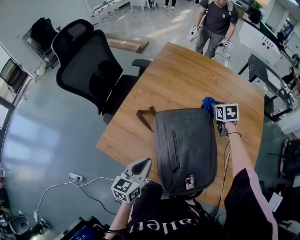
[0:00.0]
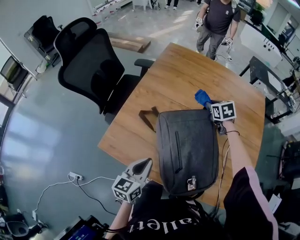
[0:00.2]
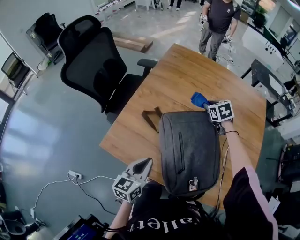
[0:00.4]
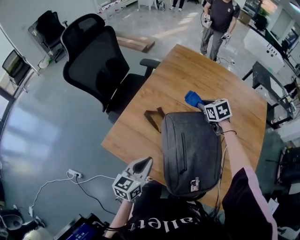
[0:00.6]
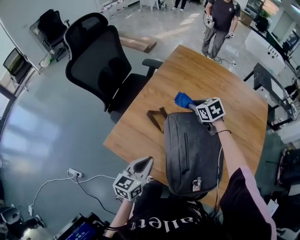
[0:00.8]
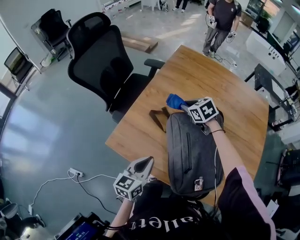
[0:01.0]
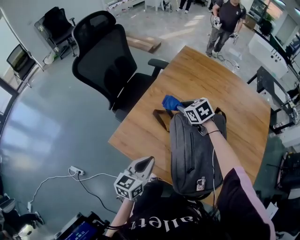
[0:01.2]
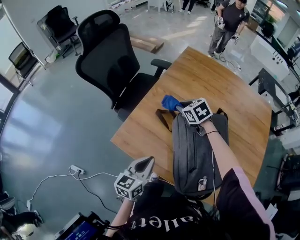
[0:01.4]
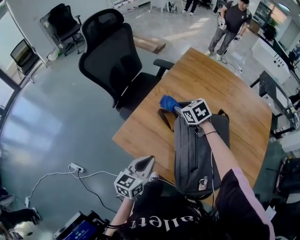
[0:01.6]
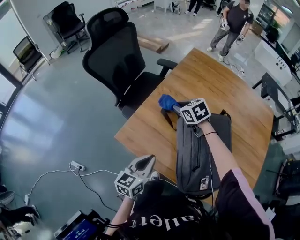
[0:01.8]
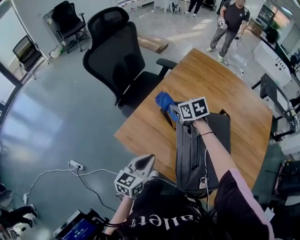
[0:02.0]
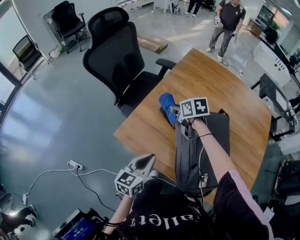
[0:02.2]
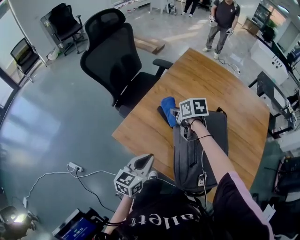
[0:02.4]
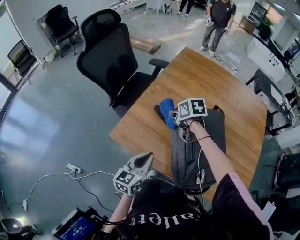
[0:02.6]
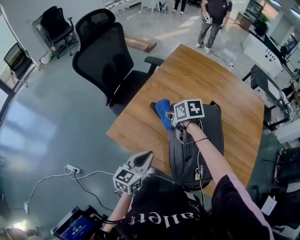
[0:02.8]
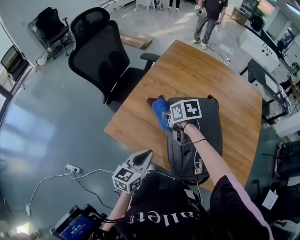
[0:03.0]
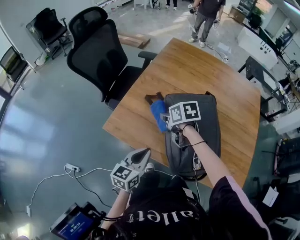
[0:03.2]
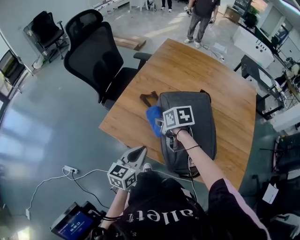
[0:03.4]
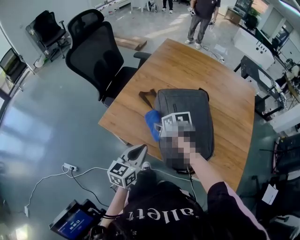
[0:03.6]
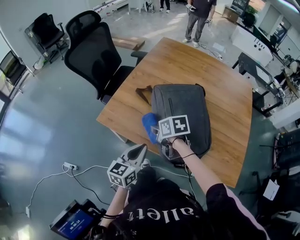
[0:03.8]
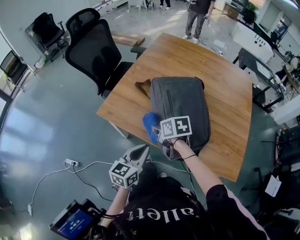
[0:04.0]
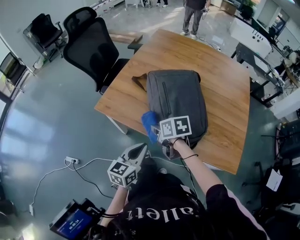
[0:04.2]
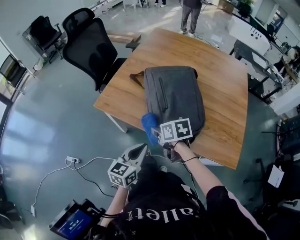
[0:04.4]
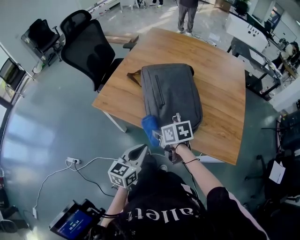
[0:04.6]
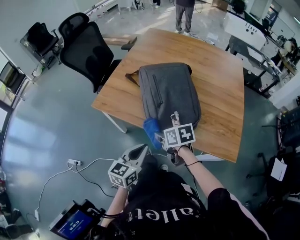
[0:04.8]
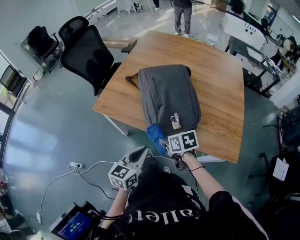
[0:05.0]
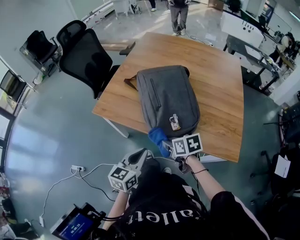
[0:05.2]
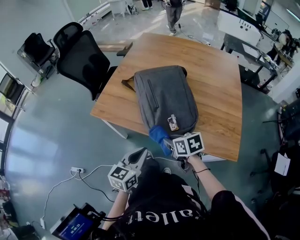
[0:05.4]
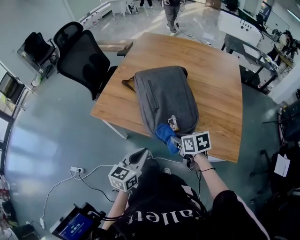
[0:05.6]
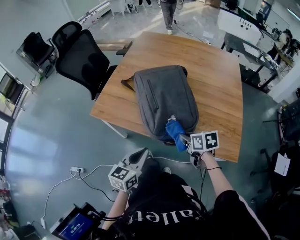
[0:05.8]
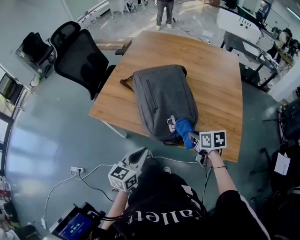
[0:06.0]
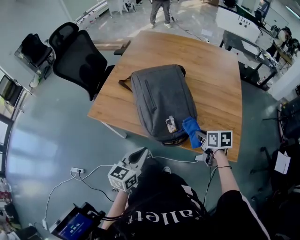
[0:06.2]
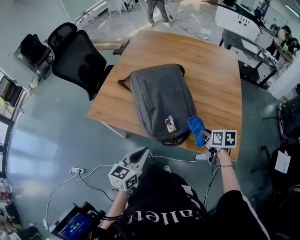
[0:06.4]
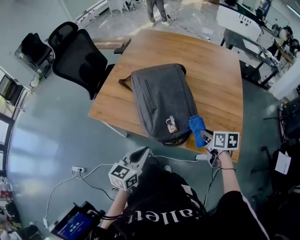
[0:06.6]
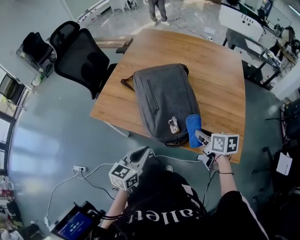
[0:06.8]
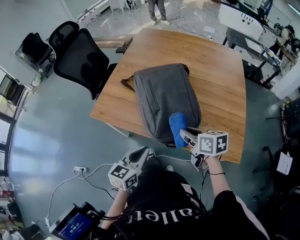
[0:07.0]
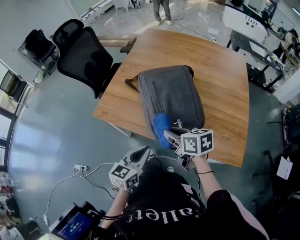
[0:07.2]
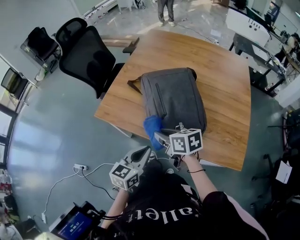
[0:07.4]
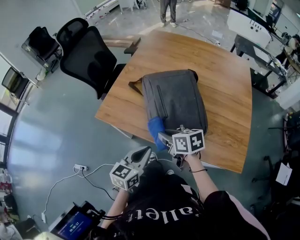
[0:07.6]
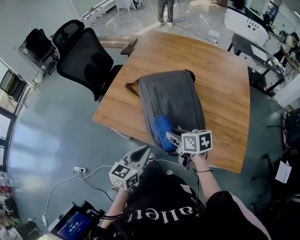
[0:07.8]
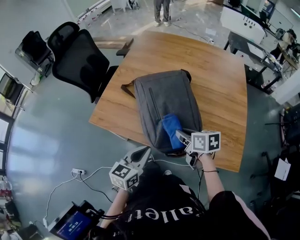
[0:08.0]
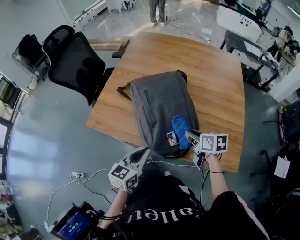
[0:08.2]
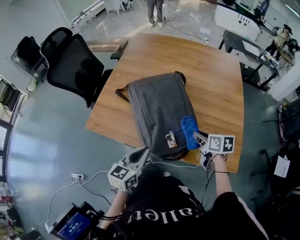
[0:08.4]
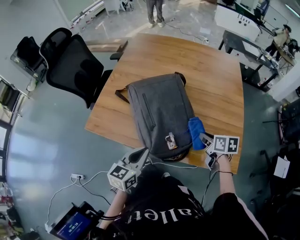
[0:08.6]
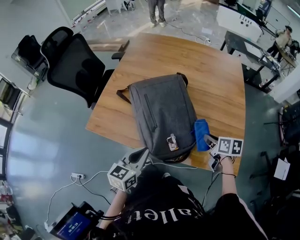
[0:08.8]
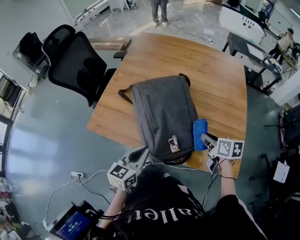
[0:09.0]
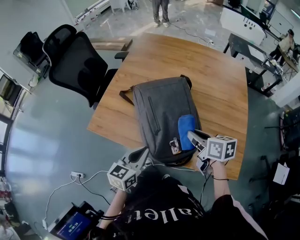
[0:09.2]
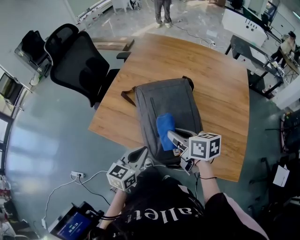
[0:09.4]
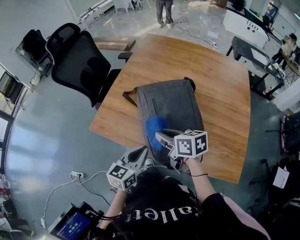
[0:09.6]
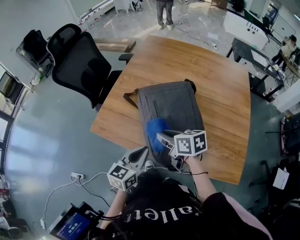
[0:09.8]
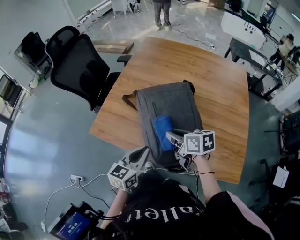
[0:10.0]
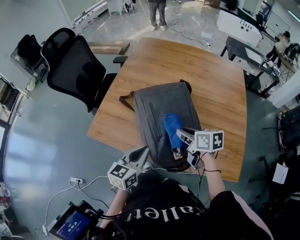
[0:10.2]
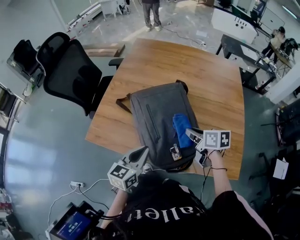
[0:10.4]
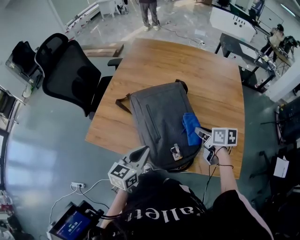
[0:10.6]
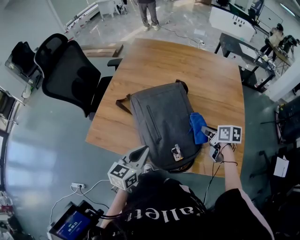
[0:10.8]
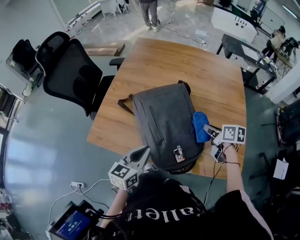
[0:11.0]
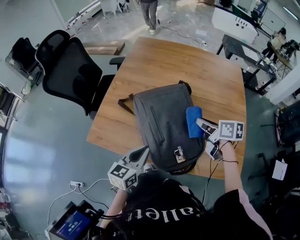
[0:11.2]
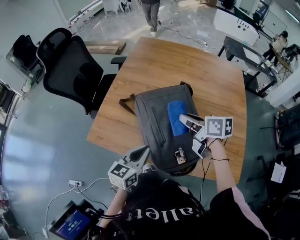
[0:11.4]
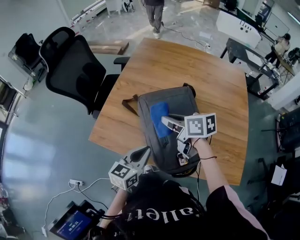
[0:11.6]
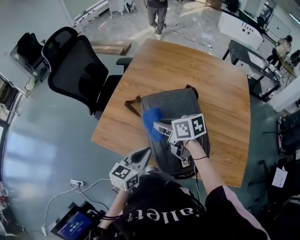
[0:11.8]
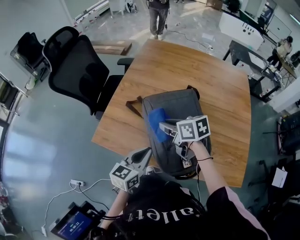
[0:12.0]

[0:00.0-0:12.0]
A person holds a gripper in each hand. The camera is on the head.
0:00.0 to 0:01.6: The right gripper shifts approximately 35 cm to the left, and turns by about 40 degrees. The left gripper heads to the left, covering about 10 cm.
0:01.6 to 0:03.0: The right gripper moves backward, some 10 cm, and swivels roughly 30 degrees; the left gripper ends up roughly 5 cm from where it was.
0:03.0 to 0:04.4: The left gripper heads backward, covering some 20 cm; the right gripper shifts about 30 cm backward.
0:04.4 to 0:06.0: The right gripper is displaced to the right by roughly 20 cm.
0:06.0 to 0:07.6: The left gripper ends up about 5 cm from where it was; the right gripper goes approximately 20 cm to the left, and turns by about 20 degrees.
0:07.6 to 0:09.0: The right gripper heads to the right, covering some 25 cm, and changes its angle by about 20 degrees. The left gripper is displaced forward by about 5 cm.
0:09.0 to 0:10.4: The right gripper moves forward, roughly 5 cm, and travels to the left and back again, roughly 25 cm each way.
0:10.4 to 0:12.0: The right gripper travels to the left by roughly 20 cm. The left gripper changes place by roughly 5 cm.

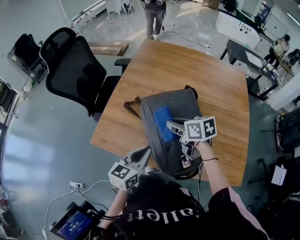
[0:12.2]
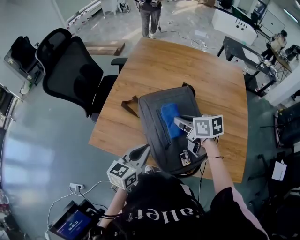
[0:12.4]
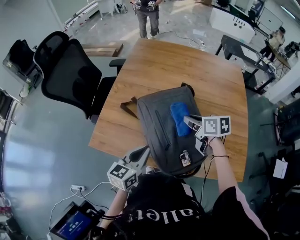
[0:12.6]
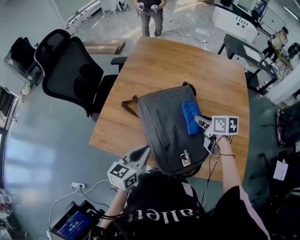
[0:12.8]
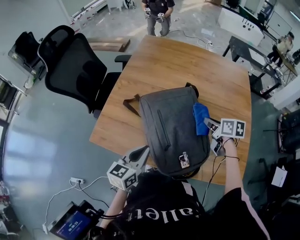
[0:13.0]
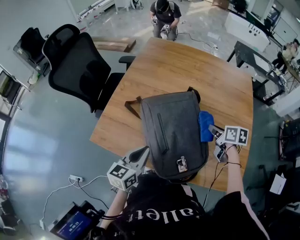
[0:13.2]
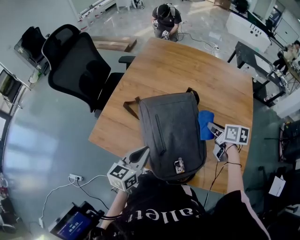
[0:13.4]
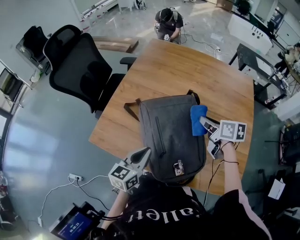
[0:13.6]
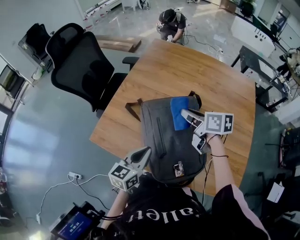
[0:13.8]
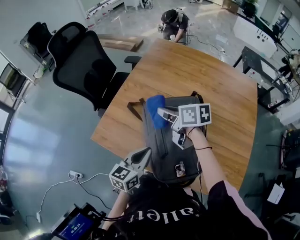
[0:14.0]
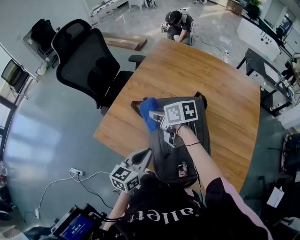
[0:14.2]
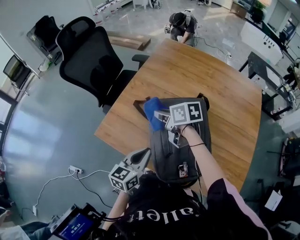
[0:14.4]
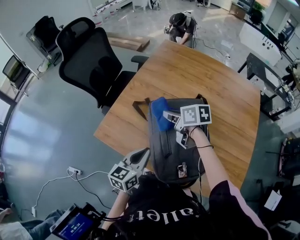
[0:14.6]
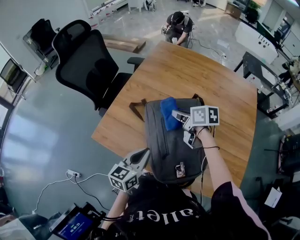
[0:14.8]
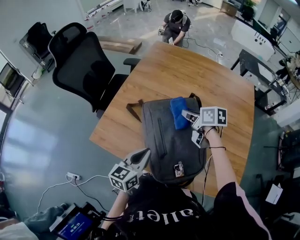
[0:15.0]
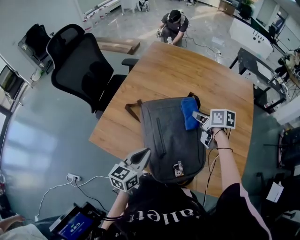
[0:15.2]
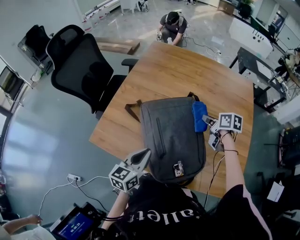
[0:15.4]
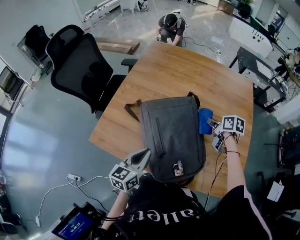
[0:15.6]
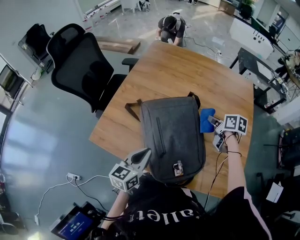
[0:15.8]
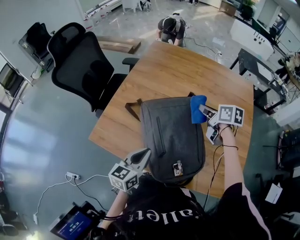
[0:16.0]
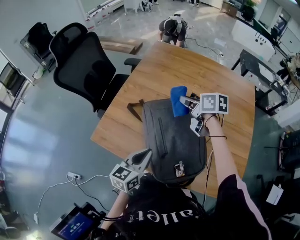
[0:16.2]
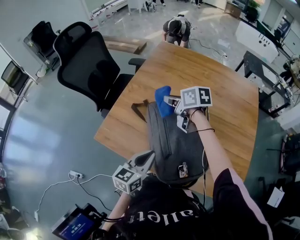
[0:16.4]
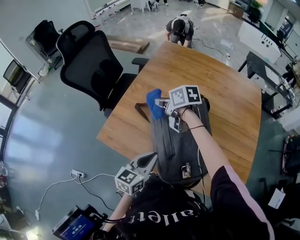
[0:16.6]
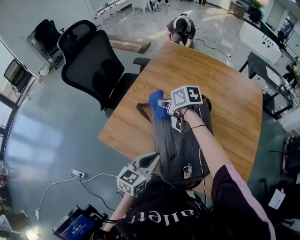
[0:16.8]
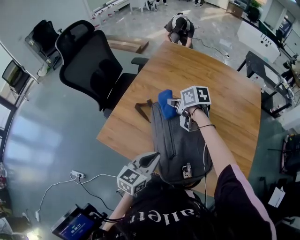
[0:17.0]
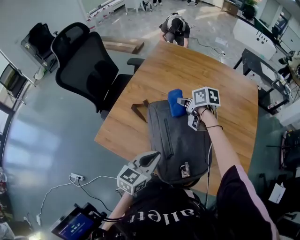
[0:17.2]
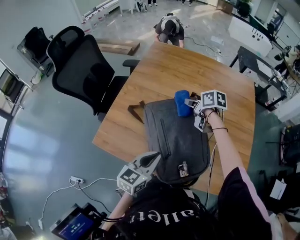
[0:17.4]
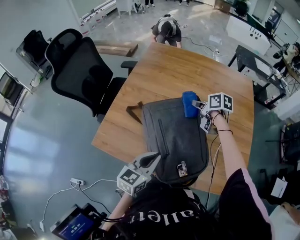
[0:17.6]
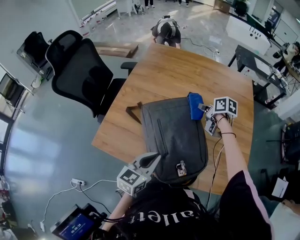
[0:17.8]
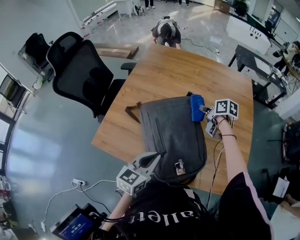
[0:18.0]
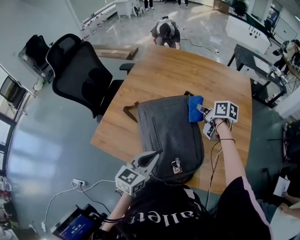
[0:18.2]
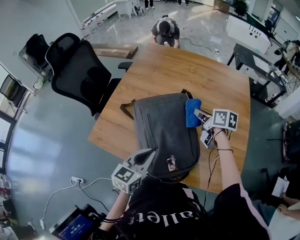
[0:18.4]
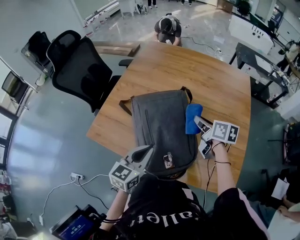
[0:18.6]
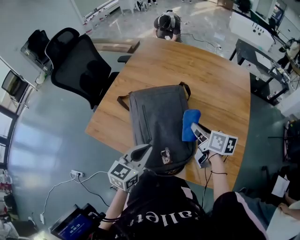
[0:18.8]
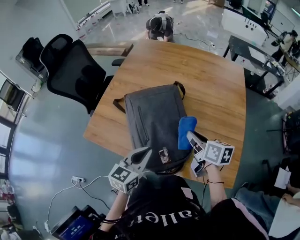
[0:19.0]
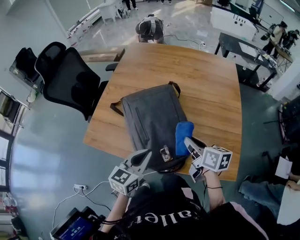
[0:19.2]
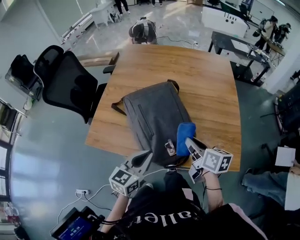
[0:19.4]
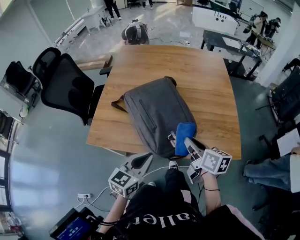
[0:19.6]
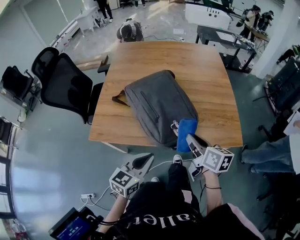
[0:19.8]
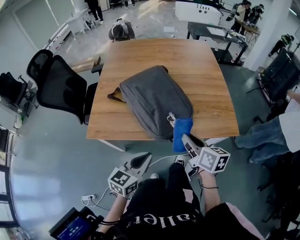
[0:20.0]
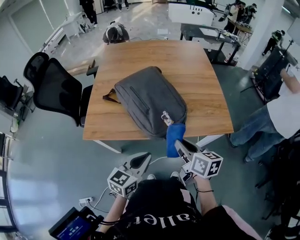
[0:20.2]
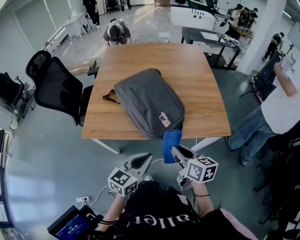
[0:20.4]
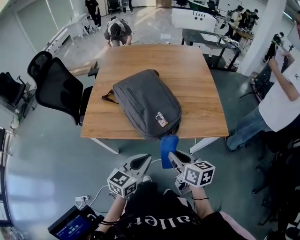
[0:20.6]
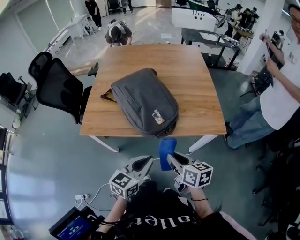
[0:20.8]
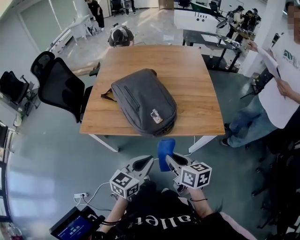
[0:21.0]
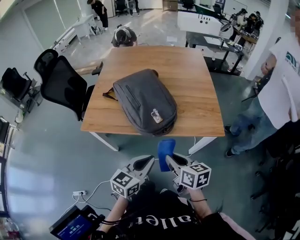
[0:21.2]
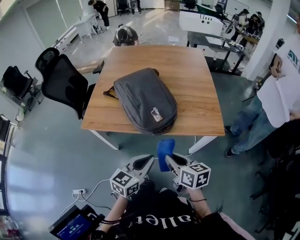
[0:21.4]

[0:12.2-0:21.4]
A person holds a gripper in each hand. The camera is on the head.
0:12.2 to 0:13.8: The right gripper is displaced forward and upward by approximately 10 cm, and travels to the right and back again, about 25 cm each way.
0:13.8 to 0:15.2: The right gripper heads downward, covering approximately 5 cm, and goes to the left and returns, approximately 15 cm each way.
0:15.2 to 0:16.8: The right gripper moves to the left, roughly 20 cm, and turns by about 20 degrees.
0:16.8 to 0:18.4: The left gripper is displaced to the right by approximately 10 cm. The right gripper is displaced to the right by some 30 cm, and changes its angle by about 30 degrees.
0:18.4 to 0:19.8: The left gripper goes approximately 20 cm backward and to the left; the right gripper heads backward, covering some 30 cm, and swivels some 20 degrees.
0:19.8 to 0:21.4: The left gripper travels backward and to the right by approximately 15 cm; the right gripper moves backward, some 15 cm.

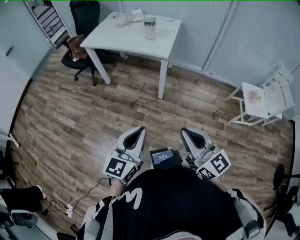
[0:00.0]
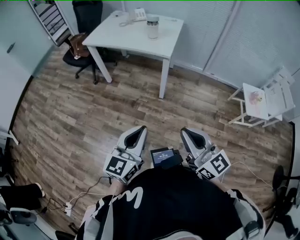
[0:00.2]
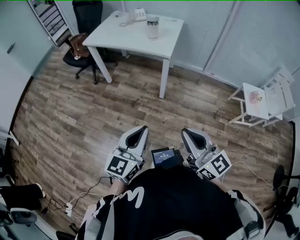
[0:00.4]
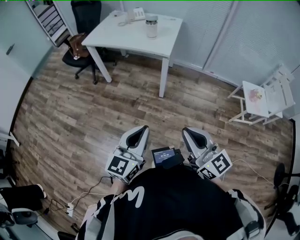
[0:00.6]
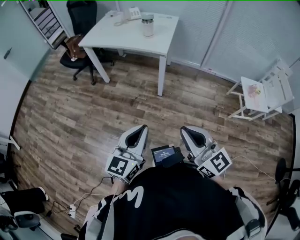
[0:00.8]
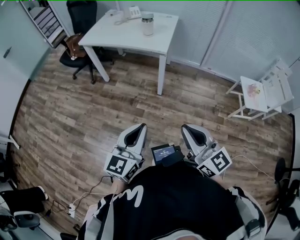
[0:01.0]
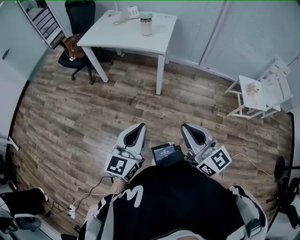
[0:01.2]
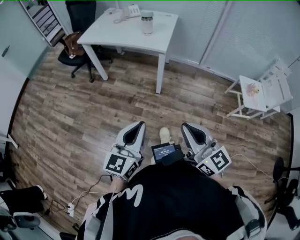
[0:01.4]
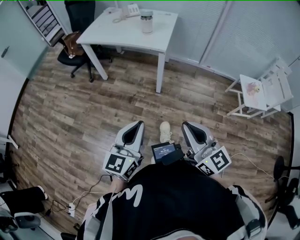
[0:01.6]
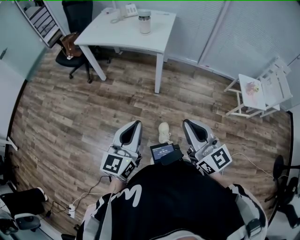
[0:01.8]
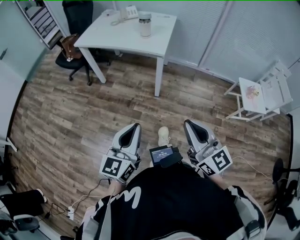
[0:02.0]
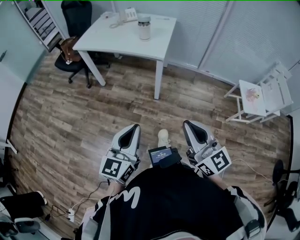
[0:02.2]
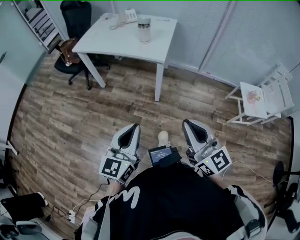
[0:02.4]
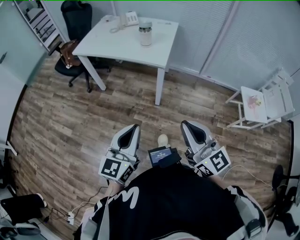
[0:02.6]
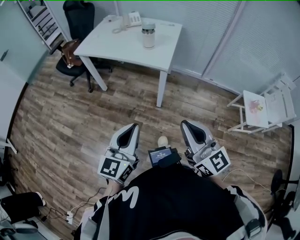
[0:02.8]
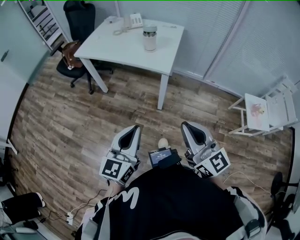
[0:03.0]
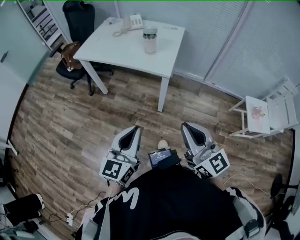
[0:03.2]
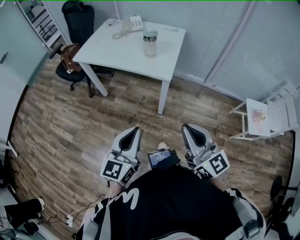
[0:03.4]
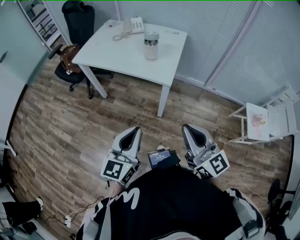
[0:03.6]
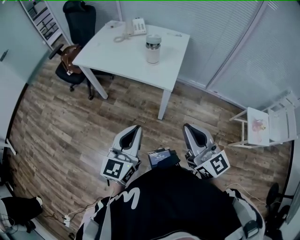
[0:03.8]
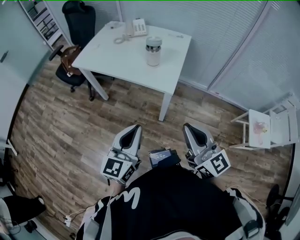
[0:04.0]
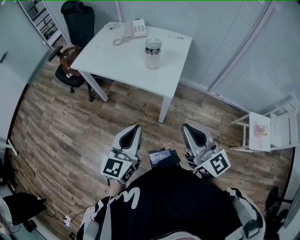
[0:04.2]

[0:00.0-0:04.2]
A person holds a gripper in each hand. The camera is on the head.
0:00.0 to 0:01.4: The grippers stay close to where they were, moving slightly.
0:01.4 to 0:02.8: The two grippers go about 15 cm forward.
0:02.8 to 0:04.2: Both grippers move forward, about 20 cm.
